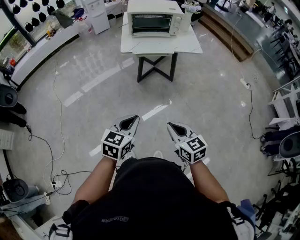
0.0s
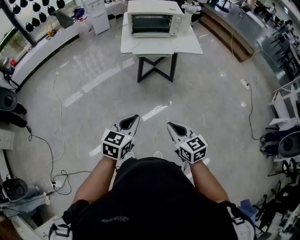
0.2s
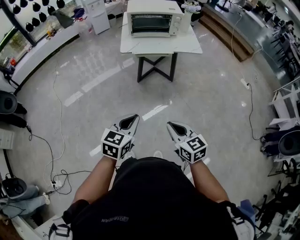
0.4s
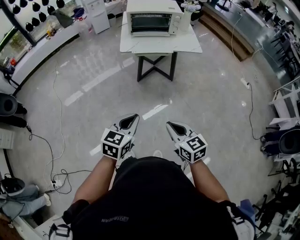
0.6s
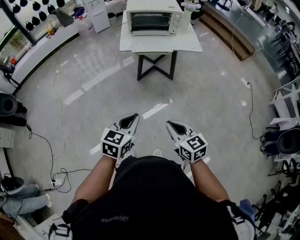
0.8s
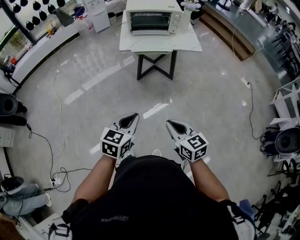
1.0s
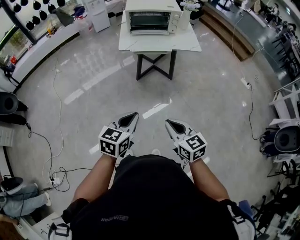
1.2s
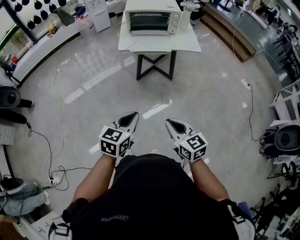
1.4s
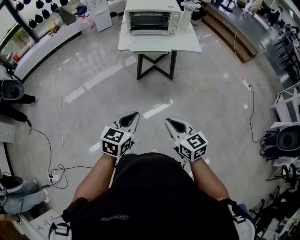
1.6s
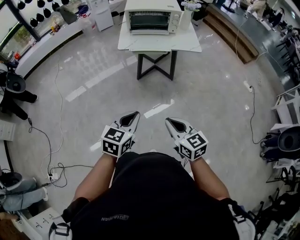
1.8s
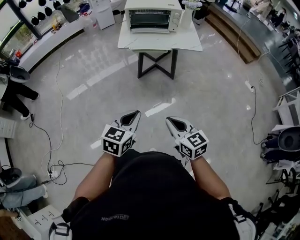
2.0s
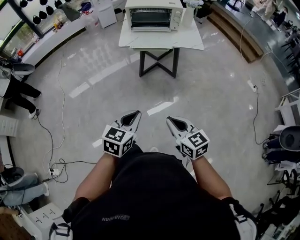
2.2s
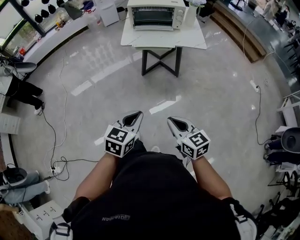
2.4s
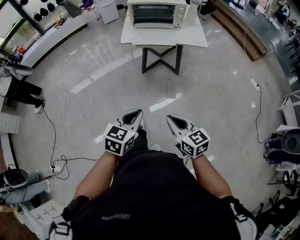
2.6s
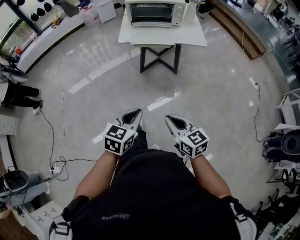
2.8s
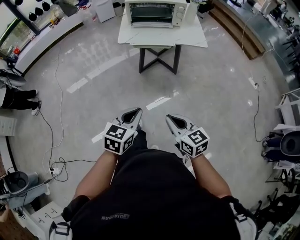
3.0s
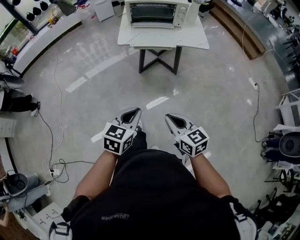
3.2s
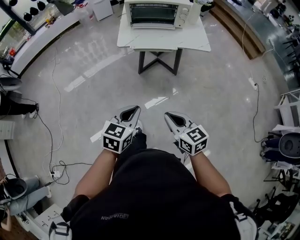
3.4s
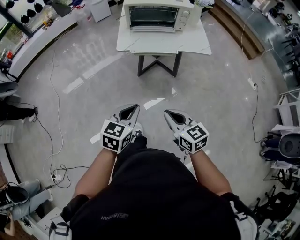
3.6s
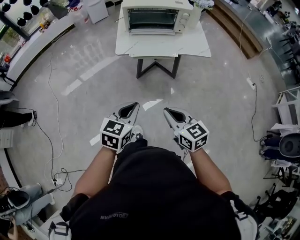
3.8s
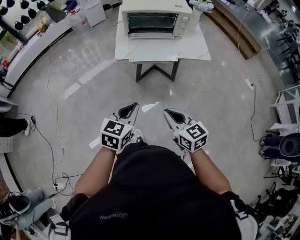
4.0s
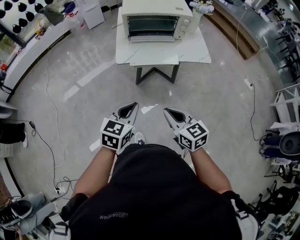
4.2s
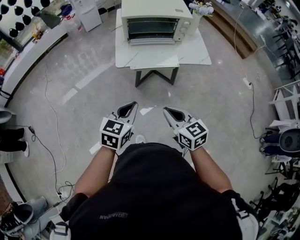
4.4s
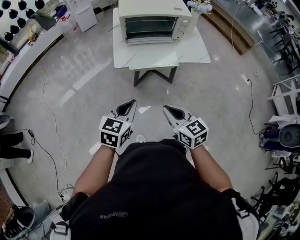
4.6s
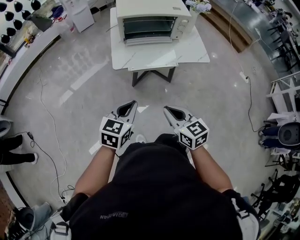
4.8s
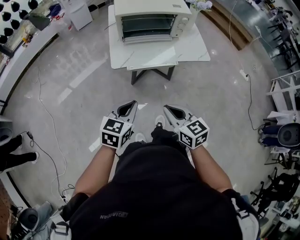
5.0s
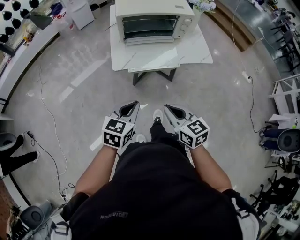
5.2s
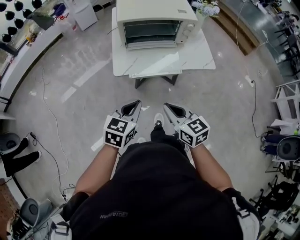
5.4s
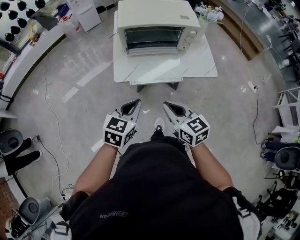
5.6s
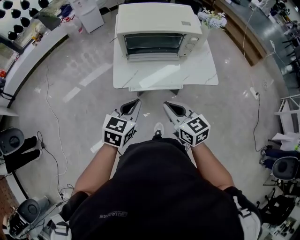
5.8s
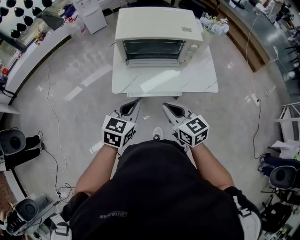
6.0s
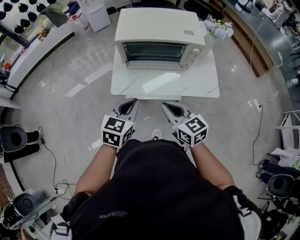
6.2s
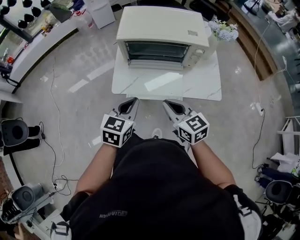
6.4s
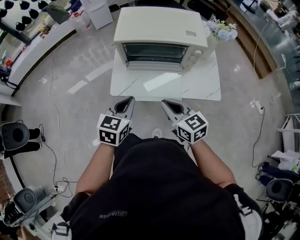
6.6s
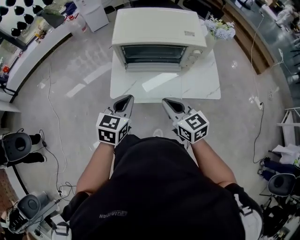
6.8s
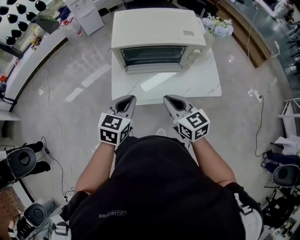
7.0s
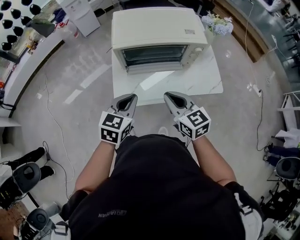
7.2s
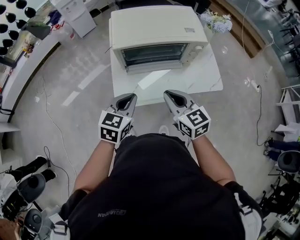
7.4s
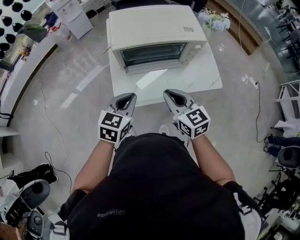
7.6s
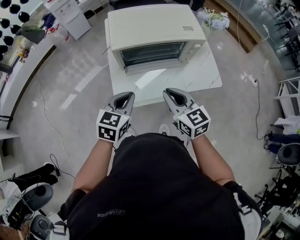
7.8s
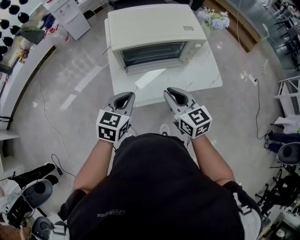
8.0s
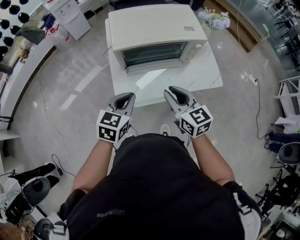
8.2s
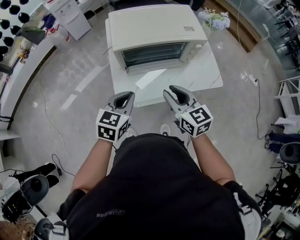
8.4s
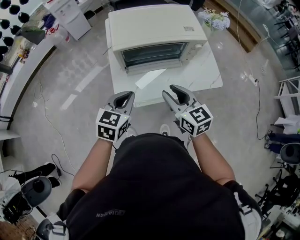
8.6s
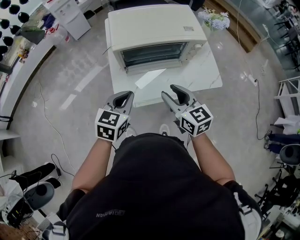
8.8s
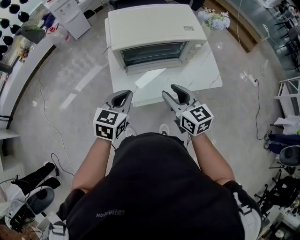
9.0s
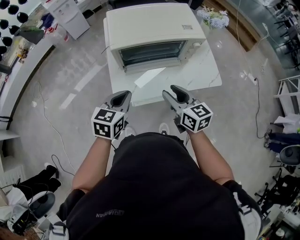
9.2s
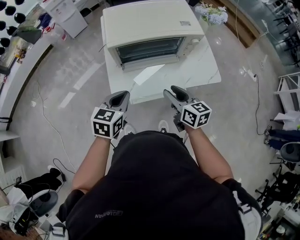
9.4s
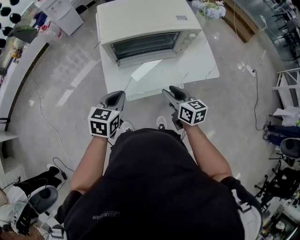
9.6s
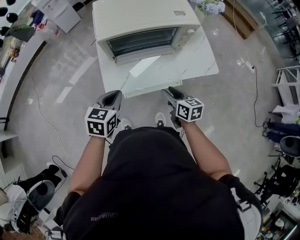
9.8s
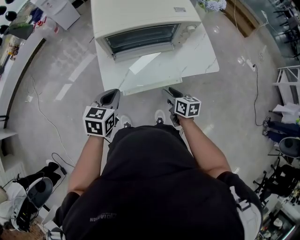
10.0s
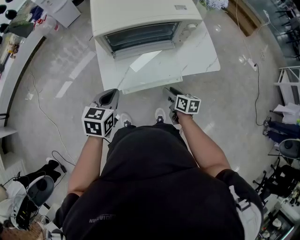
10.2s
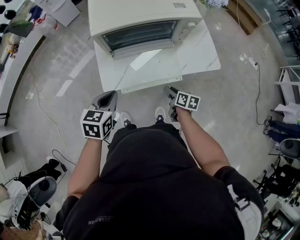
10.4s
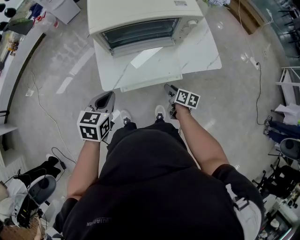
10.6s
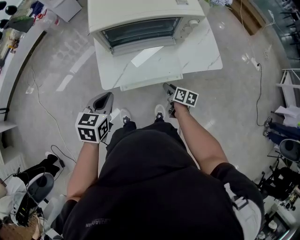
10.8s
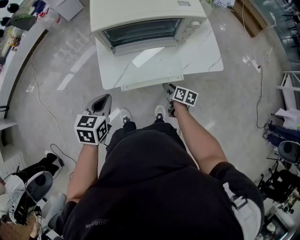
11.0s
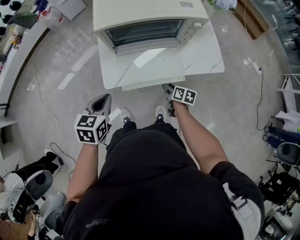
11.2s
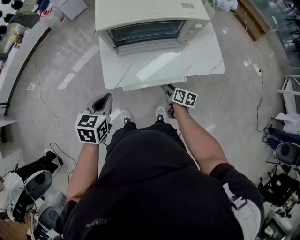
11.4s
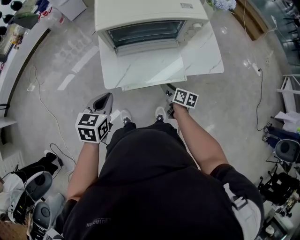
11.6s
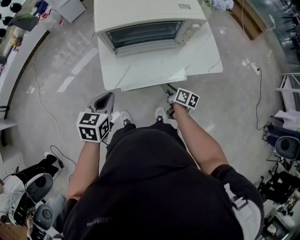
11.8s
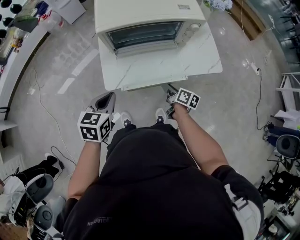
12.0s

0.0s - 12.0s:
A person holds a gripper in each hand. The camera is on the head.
0.0s - 1.6s: The left gripper moves to the right, approximately 5 cm.
1.6s - 3.0s: The left gripper ends up some 5 cm from where it was. The right gripper changes place by about 5 cm.
3.0s - 4.4s: Both grippers travel together forward, approximately 25 cm.
4.4s - 6.0s: The two grippers go roughly 20 cm forward.
6.0s - 7.6s: Both grippers travel together forward, roughly 10 cm.
7.6s - 9.0s: The right gripper opens its fingers.
9.0s - 10.4s: The right gripper heads downward, covering approximately 25 cm, and rolls clockwise, seen from behind, by about 40 degrees. The left gripper heads downward, covering approximately 5 cm.
10.4s - 12.0s: The grippers make only small movements.

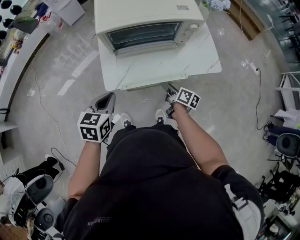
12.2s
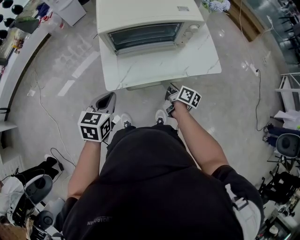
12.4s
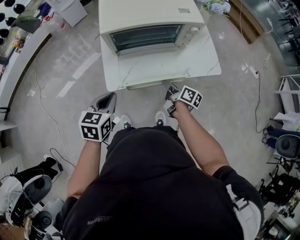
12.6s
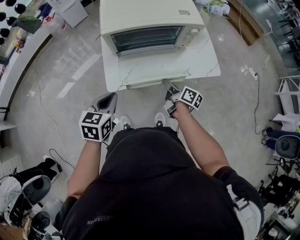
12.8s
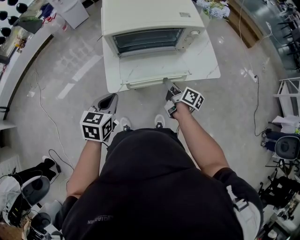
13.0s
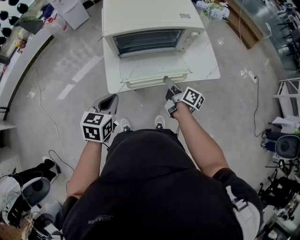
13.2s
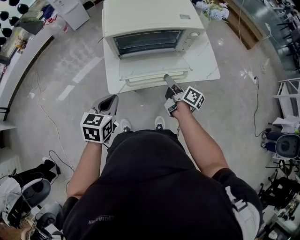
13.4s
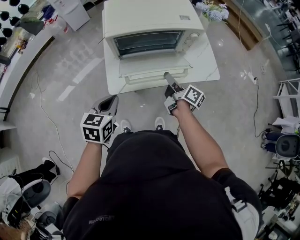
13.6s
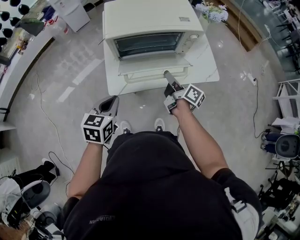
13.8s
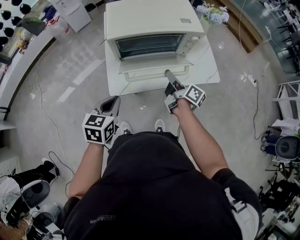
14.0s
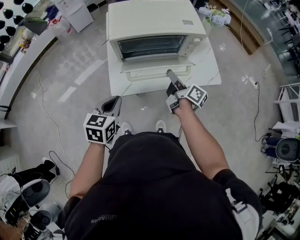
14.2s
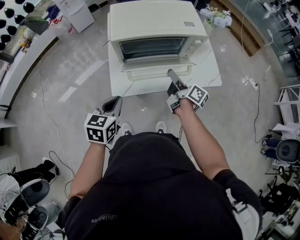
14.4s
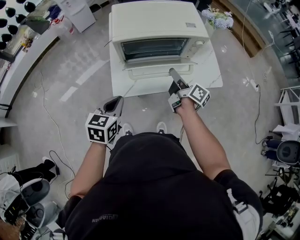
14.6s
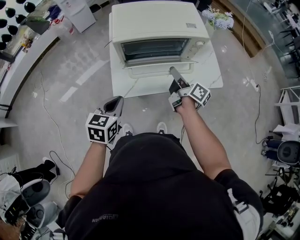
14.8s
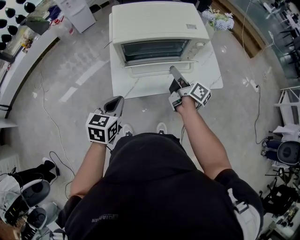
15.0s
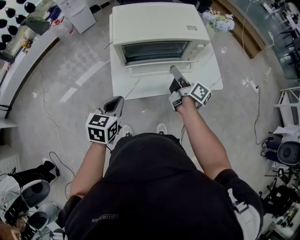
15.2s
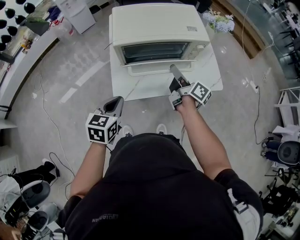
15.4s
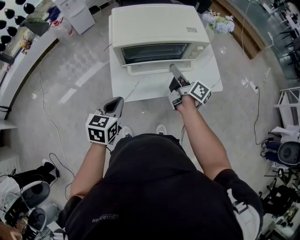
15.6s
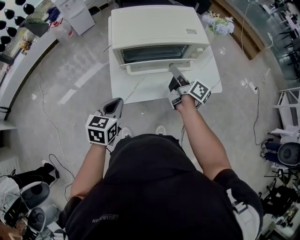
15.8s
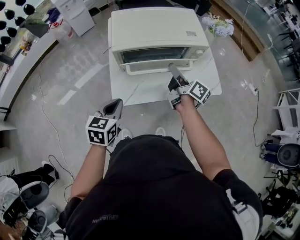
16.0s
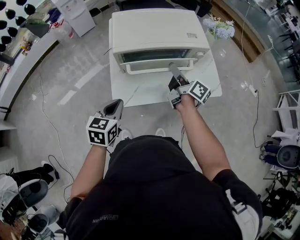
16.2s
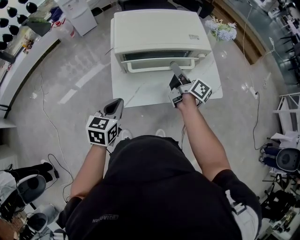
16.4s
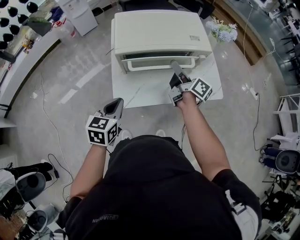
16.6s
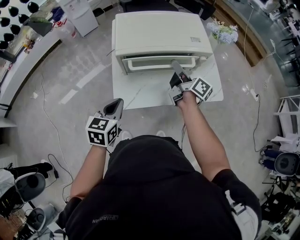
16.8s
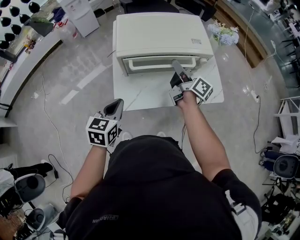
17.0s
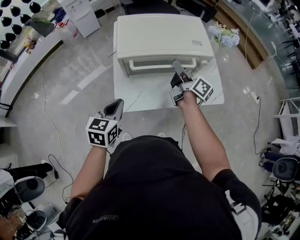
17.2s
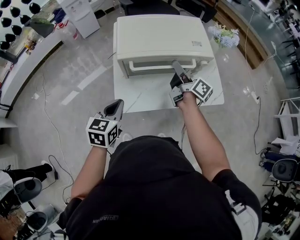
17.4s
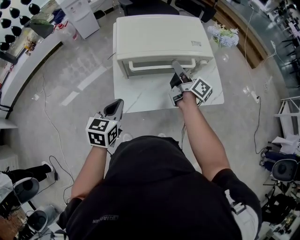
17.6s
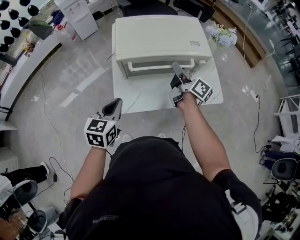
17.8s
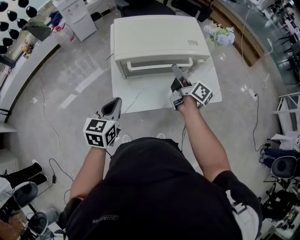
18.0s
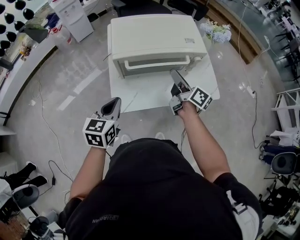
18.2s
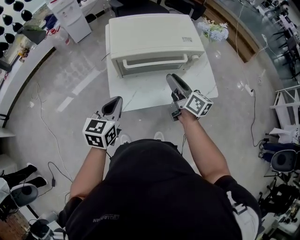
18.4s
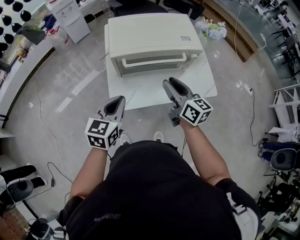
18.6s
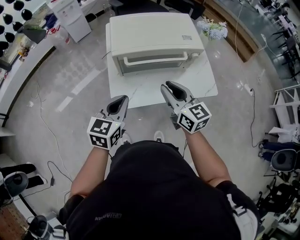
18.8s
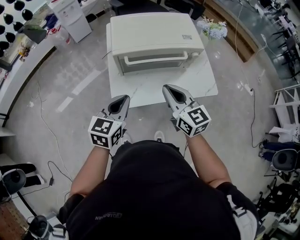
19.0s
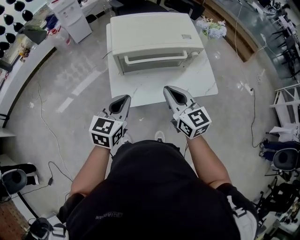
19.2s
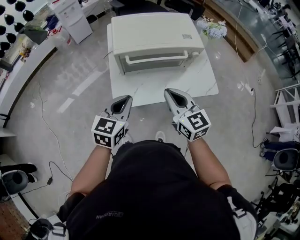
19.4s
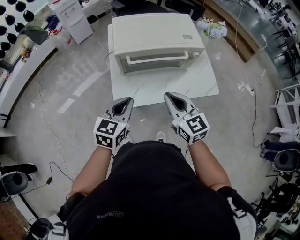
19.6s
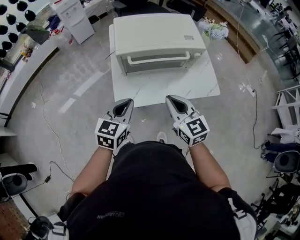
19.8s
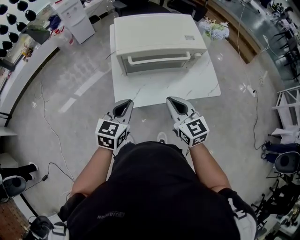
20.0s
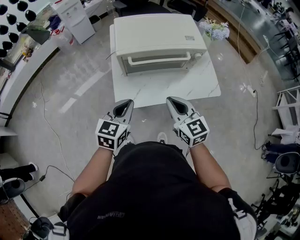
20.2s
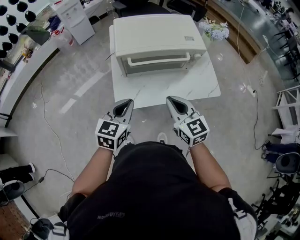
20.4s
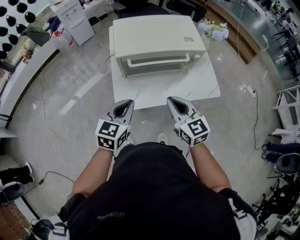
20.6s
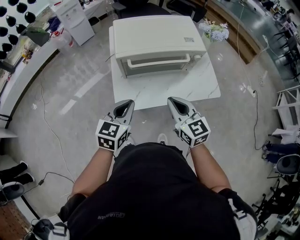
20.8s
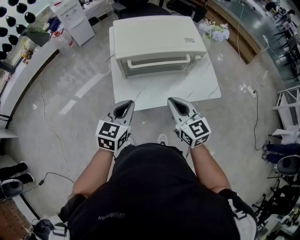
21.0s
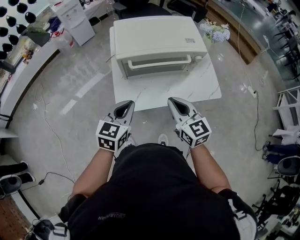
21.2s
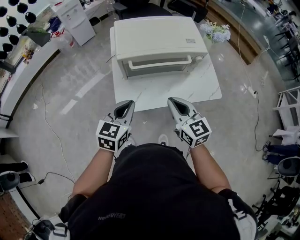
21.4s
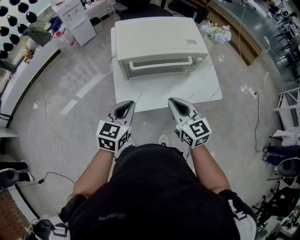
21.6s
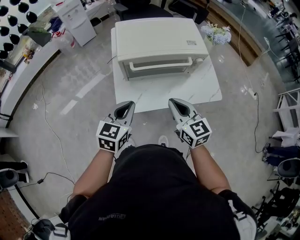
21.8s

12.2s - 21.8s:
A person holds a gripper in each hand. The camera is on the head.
12.2s - 13.8s: The right gripper moves upward and forward, approximately 15 cm.
13.8s - 15.4s: The right gripper moves upward, roughly 5 cm.
15.4s - 17.0s: The right gripper heads forward, covering about 5 cm.
17.0s - 18.6s: The left gripper shifts by approximately 5 cm. The right gripper is displaced backward by about 10 cm, and turns by some 40 degrees.
18.6s - 20.2s: The right gripper goes roughly 10 cm backward, changes its angle by some 30 degrees, and closes.
20.2s - 21.8s: The grippers stay close to where they were, moving slightly.

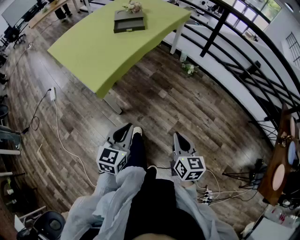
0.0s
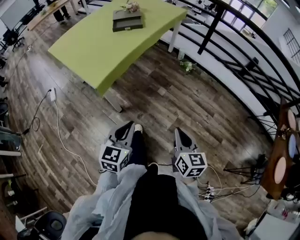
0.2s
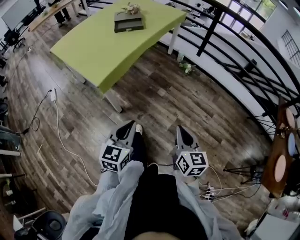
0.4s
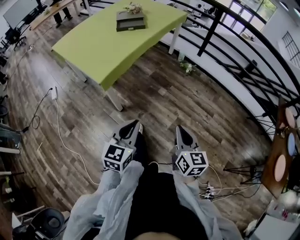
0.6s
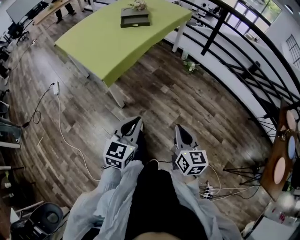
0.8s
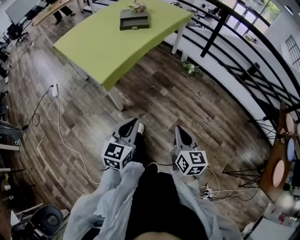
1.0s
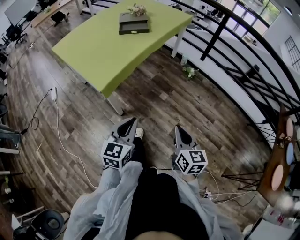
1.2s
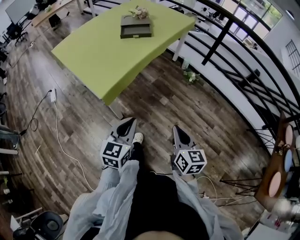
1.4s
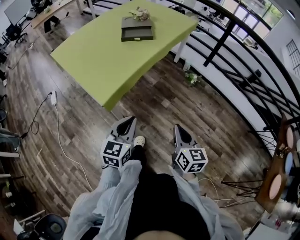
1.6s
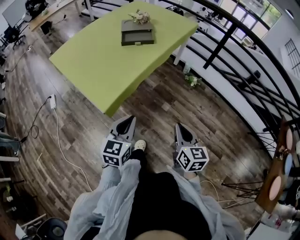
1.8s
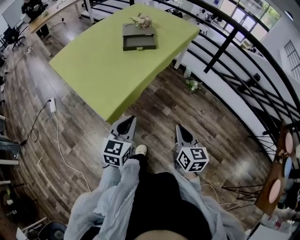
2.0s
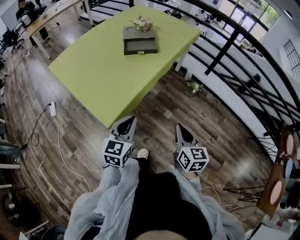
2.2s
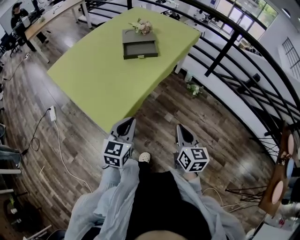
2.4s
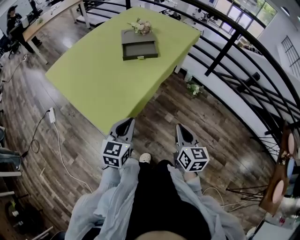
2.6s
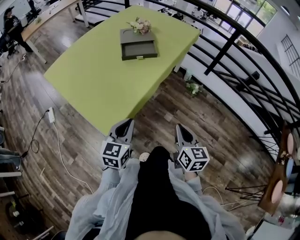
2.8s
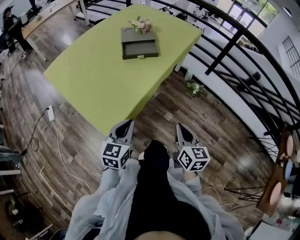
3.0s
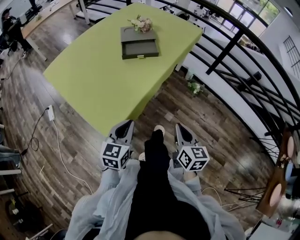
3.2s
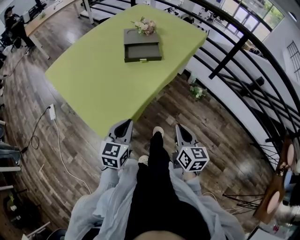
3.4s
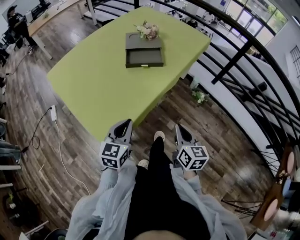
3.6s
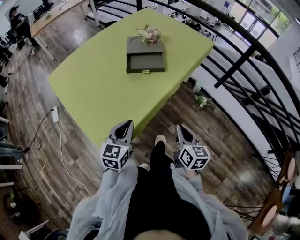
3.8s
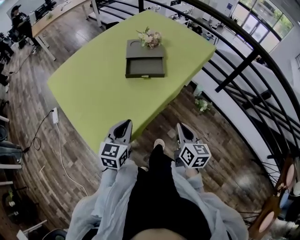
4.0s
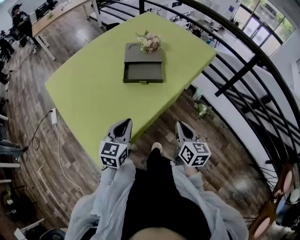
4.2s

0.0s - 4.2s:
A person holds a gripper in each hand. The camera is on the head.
0.0s - 1.4s: Both grippers travel together forward, roughly 5 cm.
1.4s - 2.8s: The right gripper is displaced forward by approximately 20 cm. Meanwhile the left gripper travels forward and to the left by some 20 cm.
2.8s - 4.2s: Both grippers move forward, about 20 cm.
